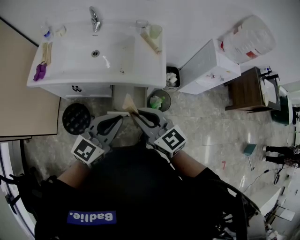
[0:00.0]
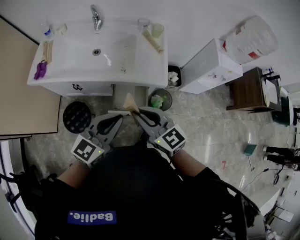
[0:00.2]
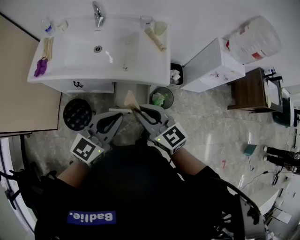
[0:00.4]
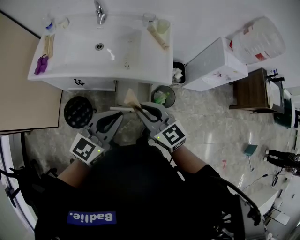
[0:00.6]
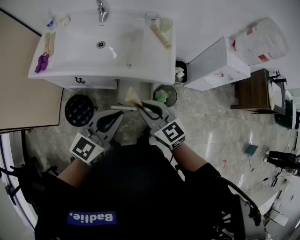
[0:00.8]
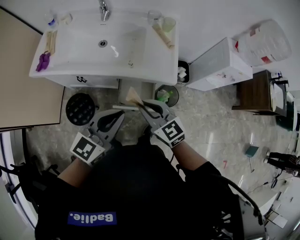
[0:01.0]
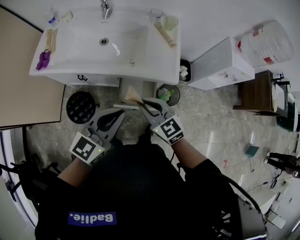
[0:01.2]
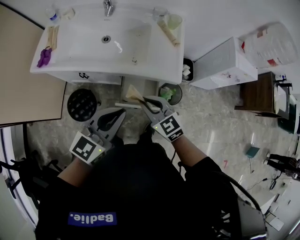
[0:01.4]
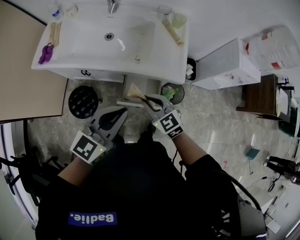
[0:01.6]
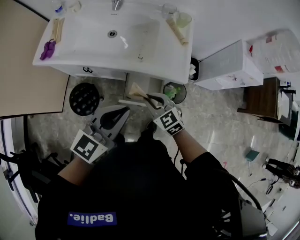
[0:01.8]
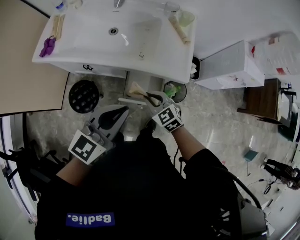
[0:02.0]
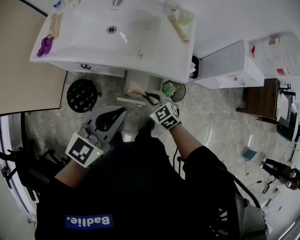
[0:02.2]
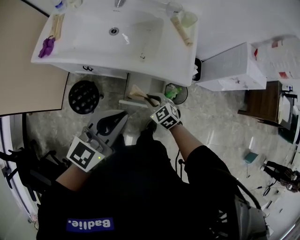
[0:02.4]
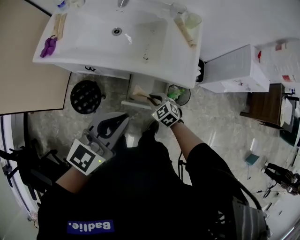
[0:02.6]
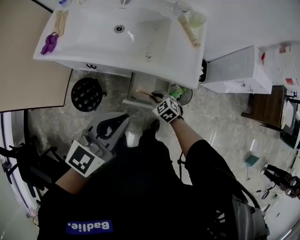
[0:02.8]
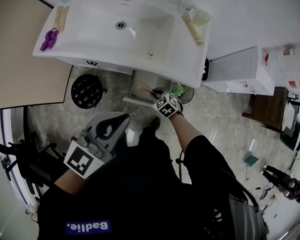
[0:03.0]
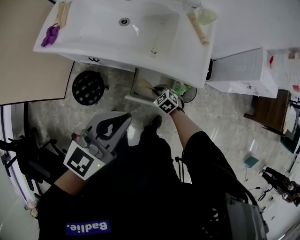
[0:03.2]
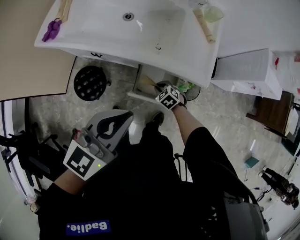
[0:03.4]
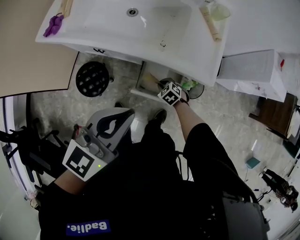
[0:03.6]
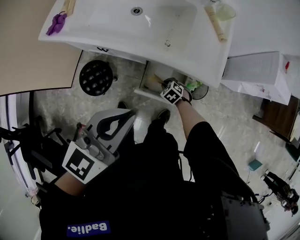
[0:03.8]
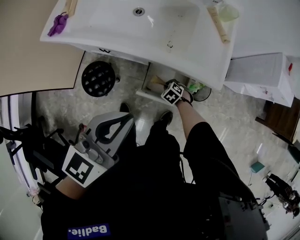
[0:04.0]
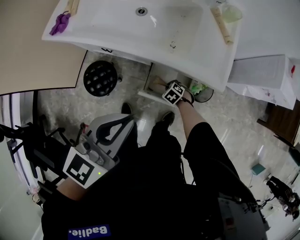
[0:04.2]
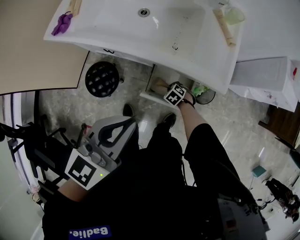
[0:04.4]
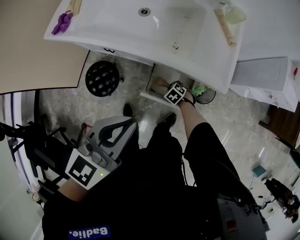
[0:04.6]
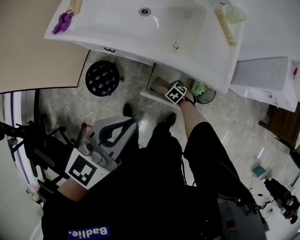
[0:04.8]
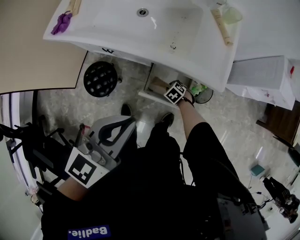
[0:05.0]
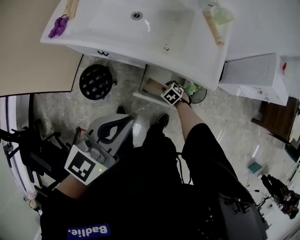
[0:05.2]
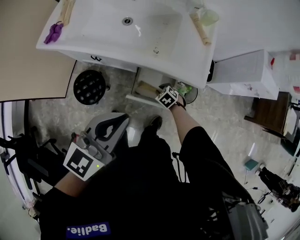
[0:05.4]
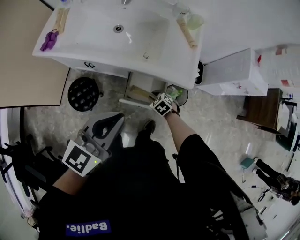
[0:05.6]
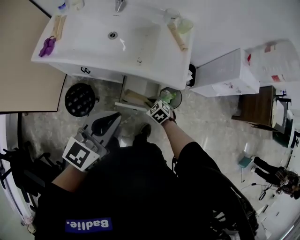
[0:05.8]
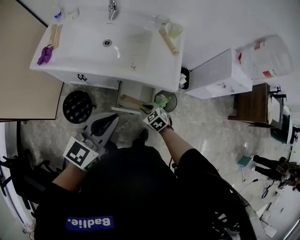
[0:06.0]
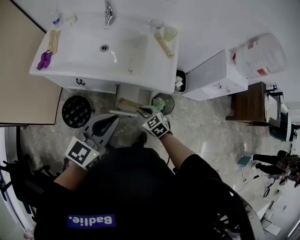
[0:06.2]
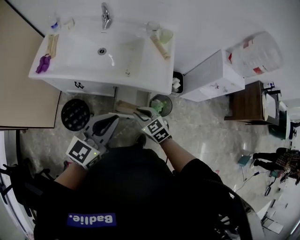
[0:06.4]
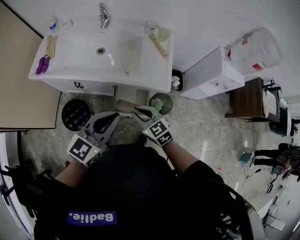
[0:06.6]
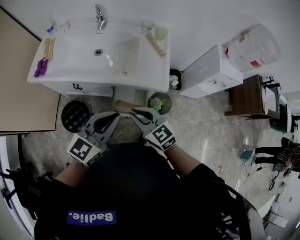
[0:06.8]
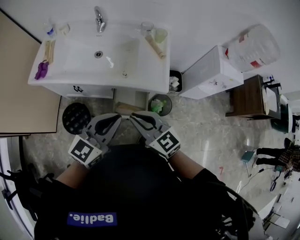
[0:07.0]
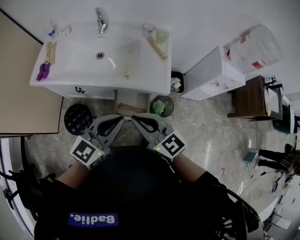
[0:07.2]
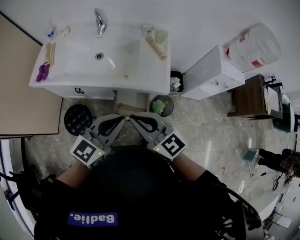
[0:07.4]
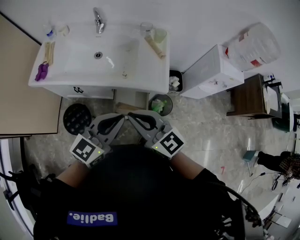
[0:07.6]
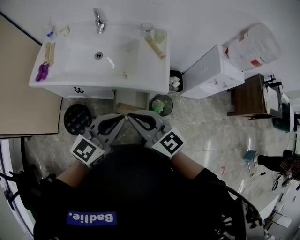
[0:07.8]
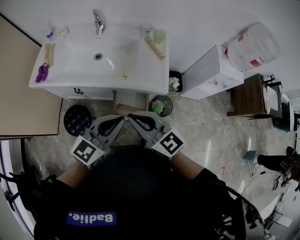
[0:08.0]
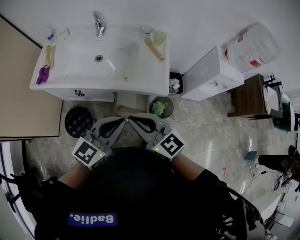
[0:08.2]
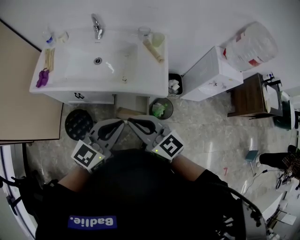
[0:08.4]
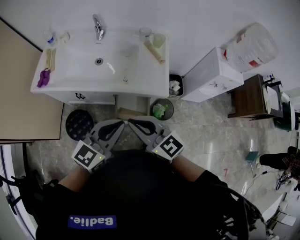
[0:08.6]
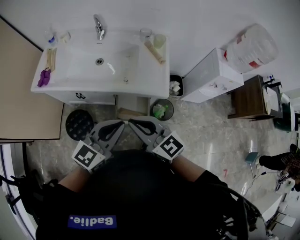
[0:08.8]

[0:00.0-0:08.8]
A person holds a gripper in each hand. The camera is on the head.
0.0 to 1.4 s: The right gripper moves downward and forward, about 15 cm.
1.4 to 3.0 s: The right gripper is displaced downward by approximately 25 cm, and tilts its fingers some 30 degrees downward.
3.0 to 4.4 s: The right gripper moves downward, roughly 15 cm, and swivels some 20 degrees.
4.4 to 5.8 s: The right gripper travels upward by some 20 cm, while the left gripper ends up approximately 5 cm from where it was.
5.8 to 7.4 s: The right gripper shifts roughly 40 cm upward, and tilts its fingers approximately 50 degrees upward, while the left gripper is displaced to the right by approximately 5 cm.
7.4 to 8.8 s: The two grippers keep their place.

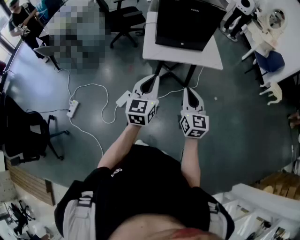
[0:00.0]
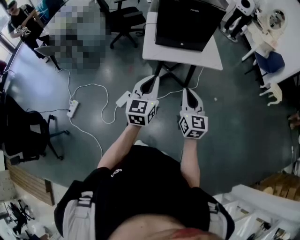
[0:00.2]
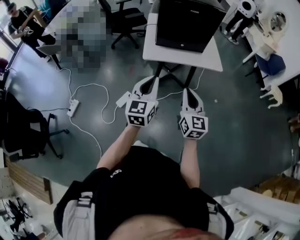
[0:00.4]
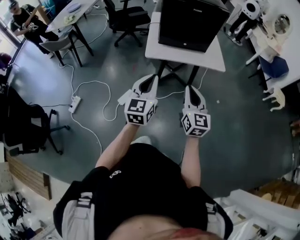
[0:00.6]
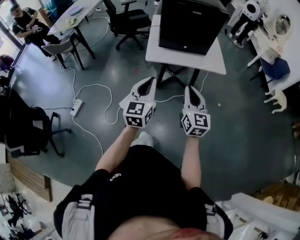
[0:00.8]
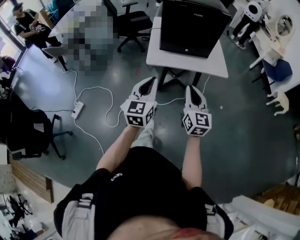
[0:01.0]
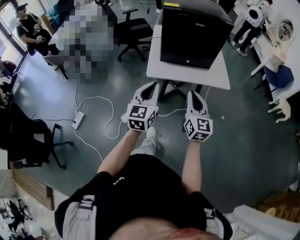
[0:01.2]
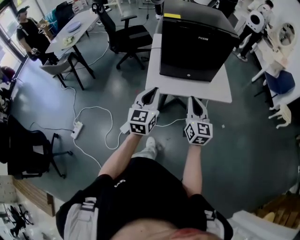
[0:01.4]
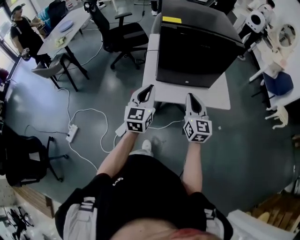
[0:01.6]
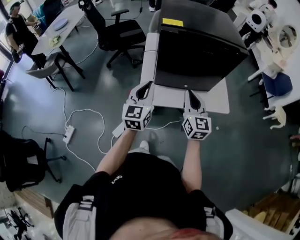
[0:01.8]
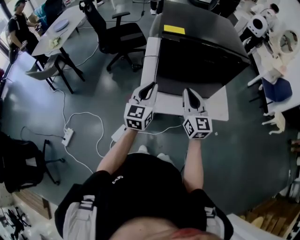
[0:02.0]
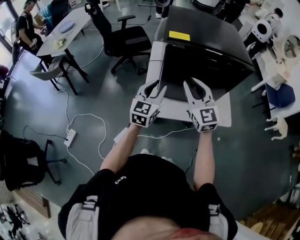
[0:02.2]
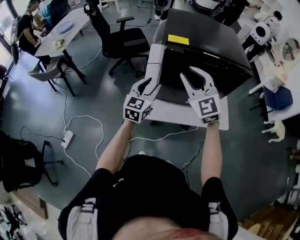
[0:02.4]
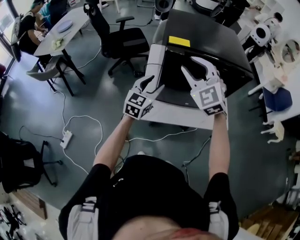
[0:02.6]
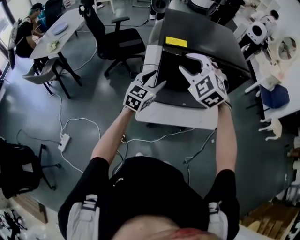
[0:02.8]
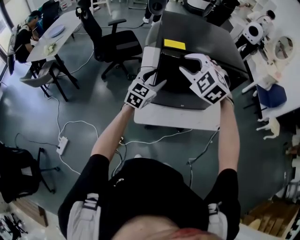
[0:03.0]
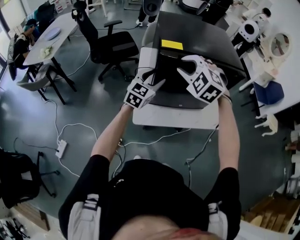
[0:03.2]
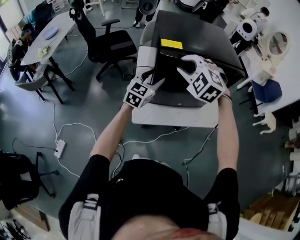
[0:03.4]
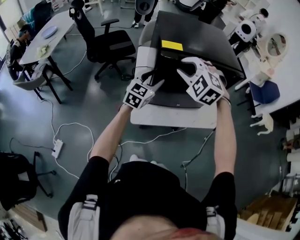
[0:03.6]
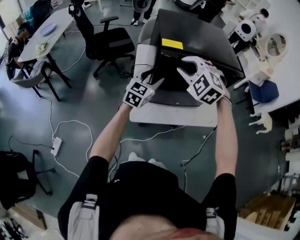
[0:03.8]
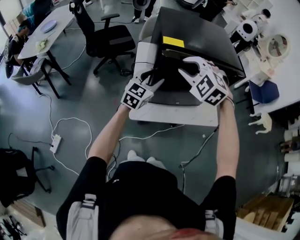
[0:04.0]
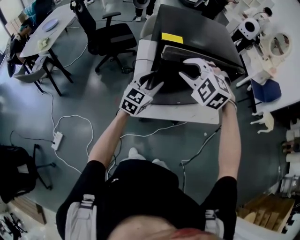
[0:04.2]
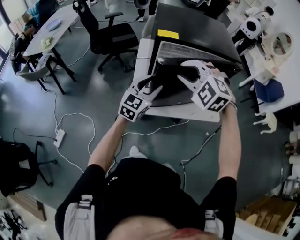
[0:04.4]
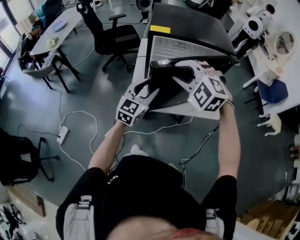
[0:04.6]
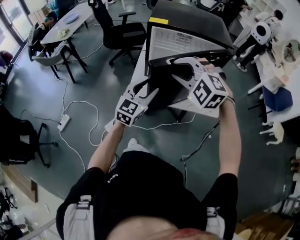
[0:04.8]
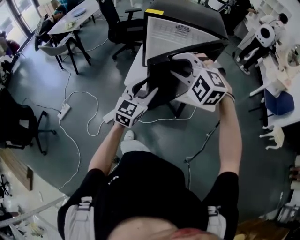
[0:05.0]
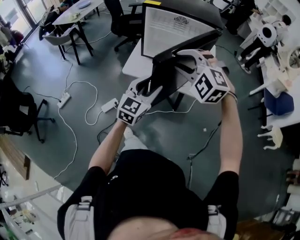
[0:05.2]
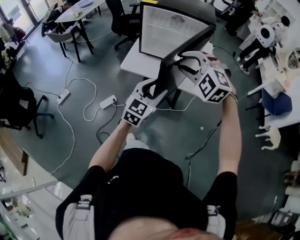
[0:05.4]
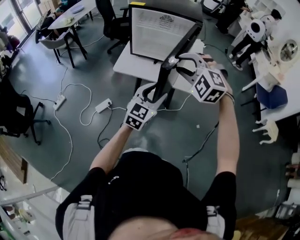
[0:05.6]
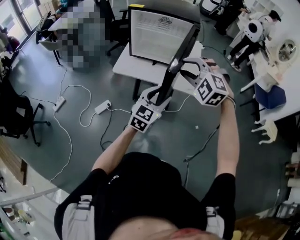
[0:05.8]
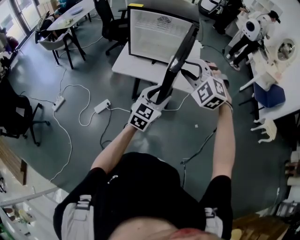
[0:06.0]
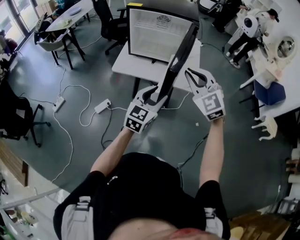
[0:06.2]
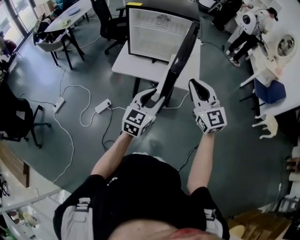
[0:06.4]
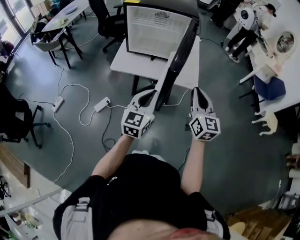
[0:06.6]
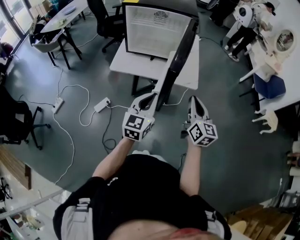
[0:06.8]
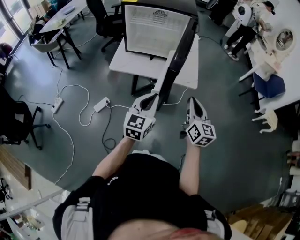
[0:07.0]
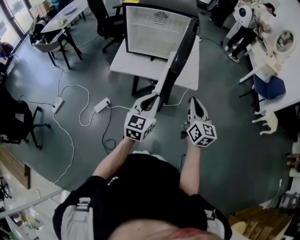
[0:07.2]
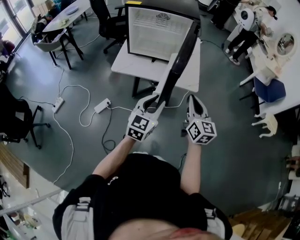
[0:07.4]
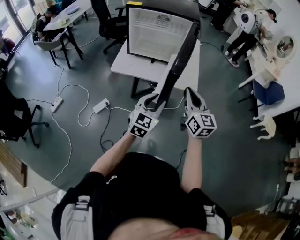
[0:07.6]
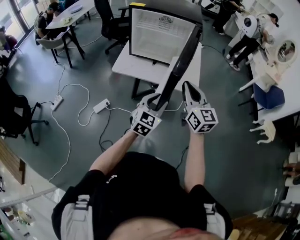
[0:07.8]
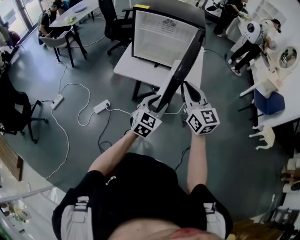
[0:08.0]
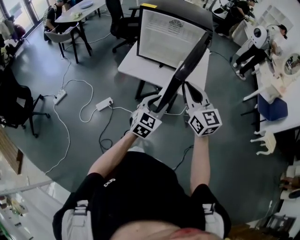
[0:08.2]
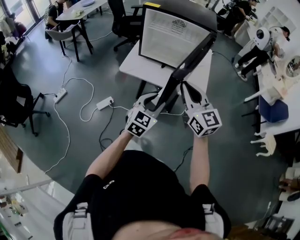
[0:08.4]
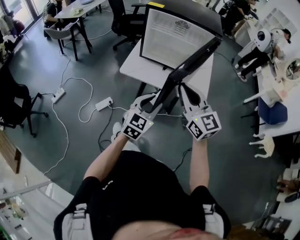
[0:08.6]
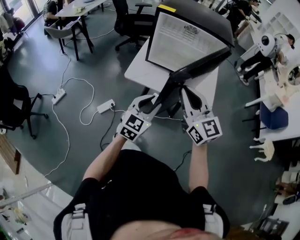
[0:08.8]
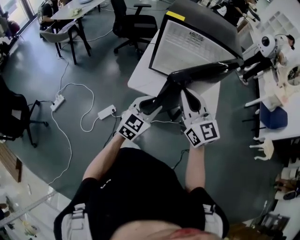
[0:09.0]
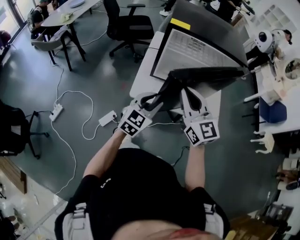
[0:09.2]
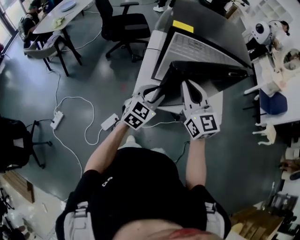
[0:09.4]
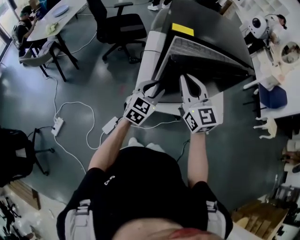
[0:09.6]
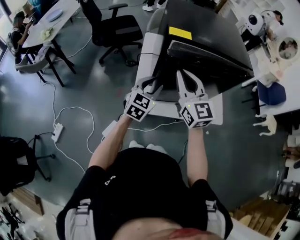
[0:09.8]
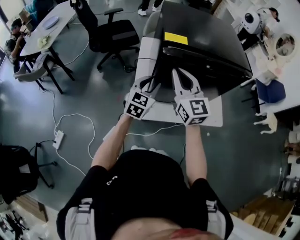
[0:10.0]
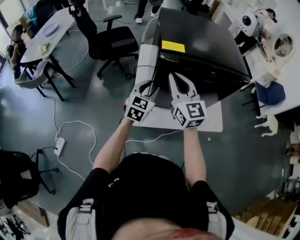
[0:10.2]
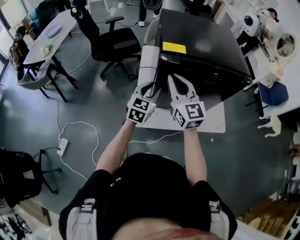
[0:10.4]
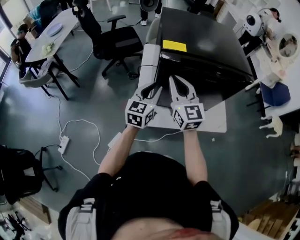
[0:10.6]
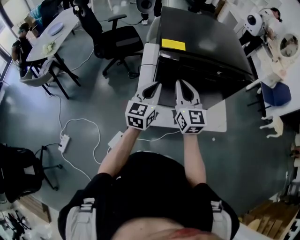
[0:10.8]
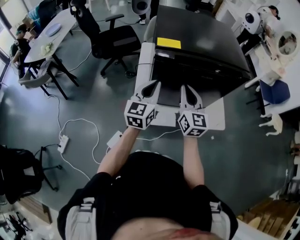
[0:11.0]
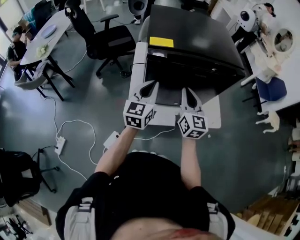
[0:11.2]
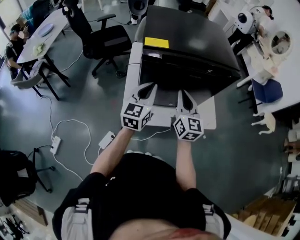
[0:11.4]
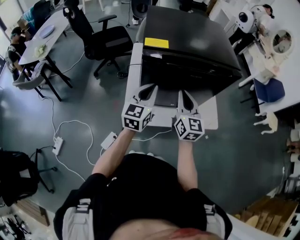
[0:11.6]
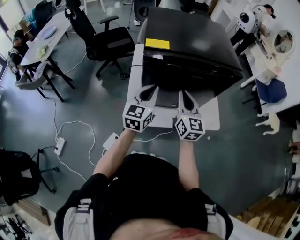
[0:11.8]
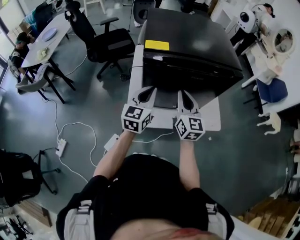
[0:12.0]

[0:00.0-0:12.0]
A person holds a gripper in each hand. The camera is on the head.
0.0 to 1.6 s: Both grippers move forward, some 30 cm.
1.6 to 3.0 s: The left gripper is displaced forward by roughly 20 cm, swivels some 20 degrees, and opens up; the right gripper travels forward, upward and to the left by some 25 cm, twists roughly 60 degrees counterclockwise, seen from behind, and opens up.
3.0 to 4.4 s: Both grippers move backward, roughly 10 cm.
4.4 to 6.0 s: The grippers both shift backward and to the right by about 40 cm.
6.0 to 7.6 s: The left gripper closes, then reopens; the right gripper heads downward and to the right, covering about 10 cm, rotates around the line of its fingers by approximately 70 degrees, clockwise from behind, and closes.
7.6 to 9.0 s: Both grippers travel together to the left and forward, approximately 25 cm. The right gripper changes its angle by approximately 20 degrees.
9.0 to 10.4 s: The left gripper goes some 30 cm forward, while the right gripper goes some 25 cm forward and to the left.
10.4 to 12.0 s: The right gripper goes about 15 cm to the right and downward. The left gripper shifts by some 5 cm, and closes.

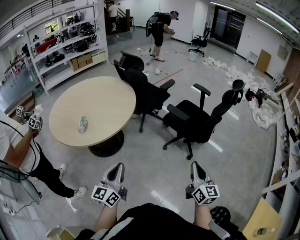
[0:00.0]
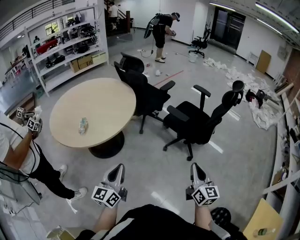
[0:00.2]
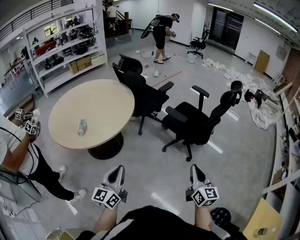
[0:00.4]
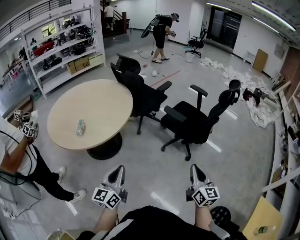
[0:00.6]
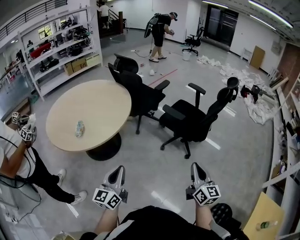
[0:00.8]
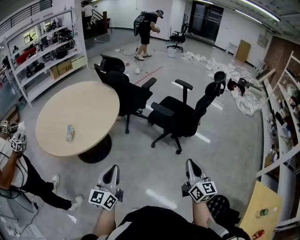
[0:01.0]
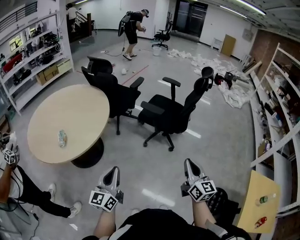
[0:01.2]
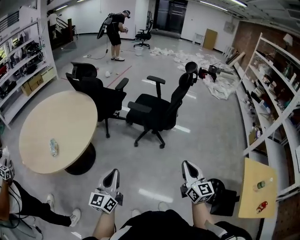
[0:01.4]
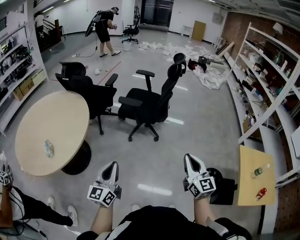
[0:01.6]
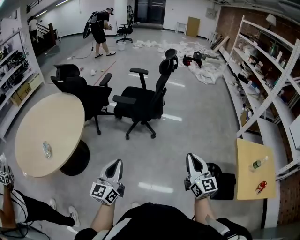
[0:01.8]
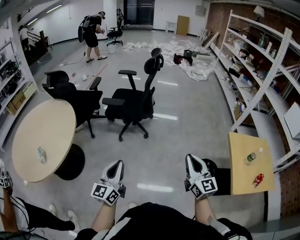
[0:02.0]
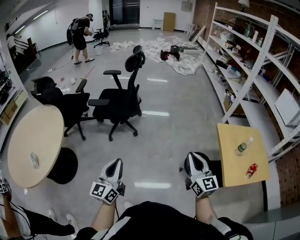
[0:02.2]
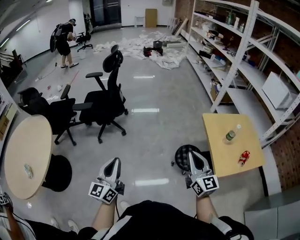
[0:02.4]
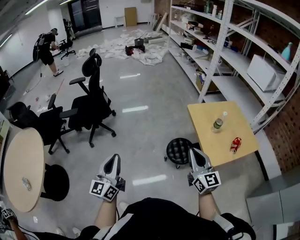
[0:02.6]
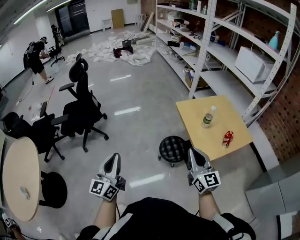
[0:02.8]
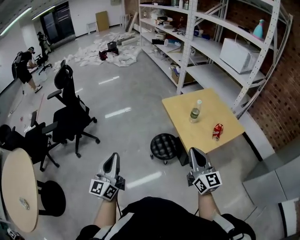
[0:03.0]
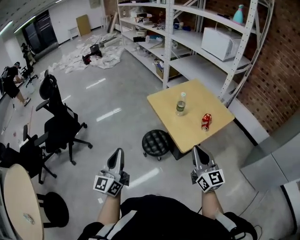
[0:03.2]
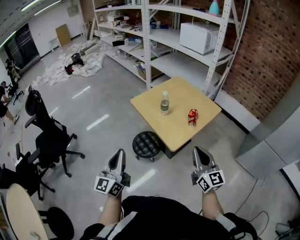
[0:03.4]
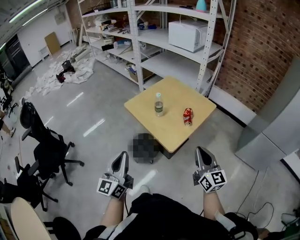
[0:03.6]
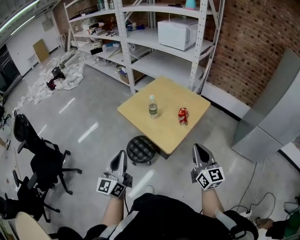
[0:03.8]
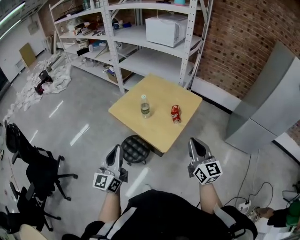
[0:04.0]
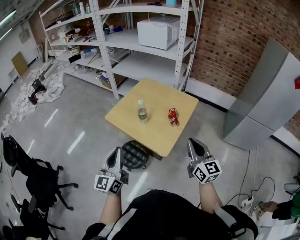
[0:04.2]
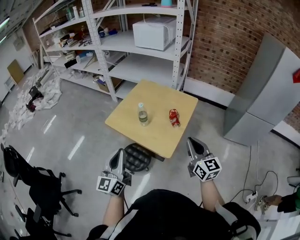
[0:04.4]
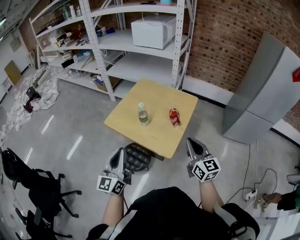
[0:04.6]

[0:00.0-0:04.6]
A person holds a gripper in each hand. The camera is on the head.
0.0 to 1.6 s: The left gripper goes about 5 cm to the right, and rotates about 30 degrees. Meanwhile the right gripper shifts about 15 cm backward, and turns by approximately 20 degrees.
1.6 to 3.0 s: The two grippers travel together, roughly 50 cm. The right gripper turns by roughly 40 degrees. The left gripper turns by about 40 degrees.
3.0 to 4.6 s: The left gripper shifts by roughly 30 cm, and changes its angle by roughly 40 degrees; the right gripper shifts by about 15 cm, and changes its angle by some 40 degrees.
